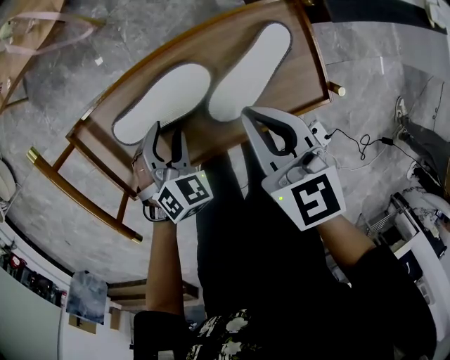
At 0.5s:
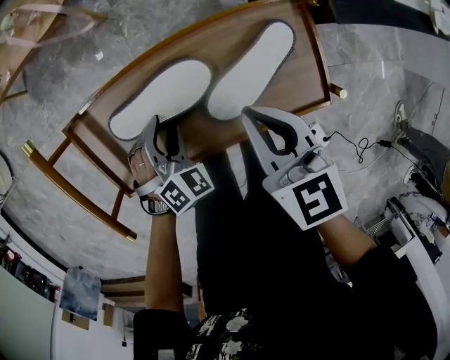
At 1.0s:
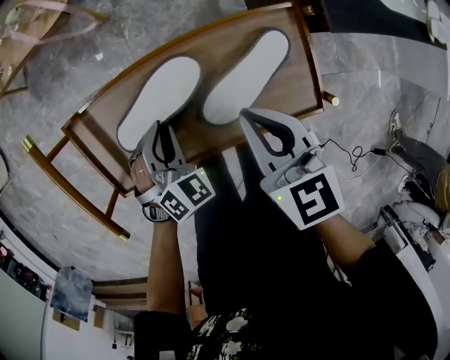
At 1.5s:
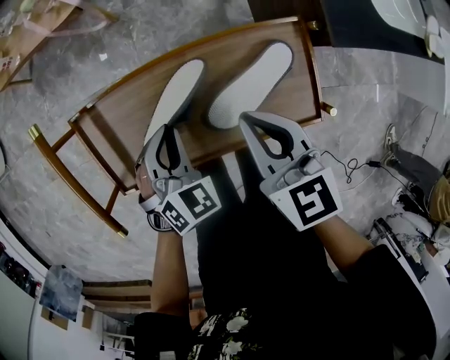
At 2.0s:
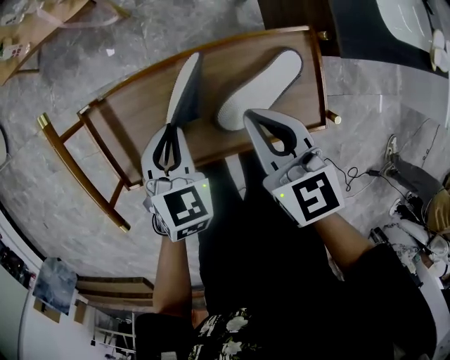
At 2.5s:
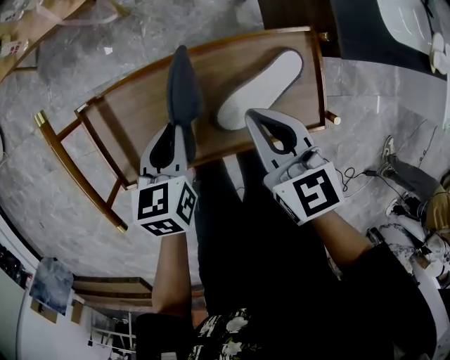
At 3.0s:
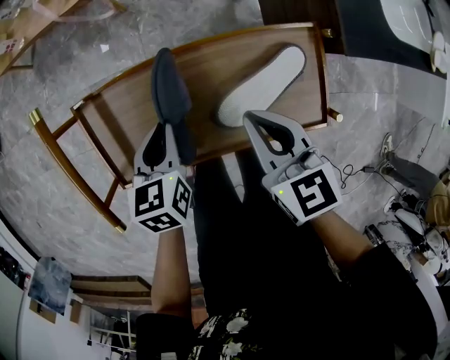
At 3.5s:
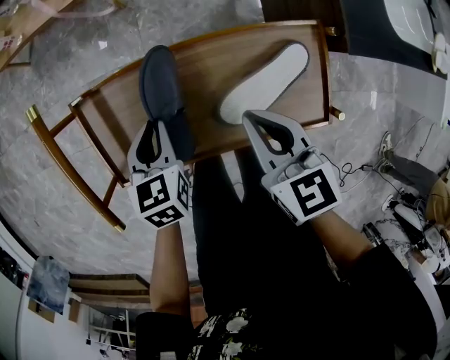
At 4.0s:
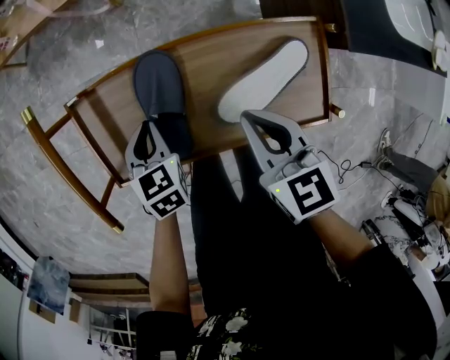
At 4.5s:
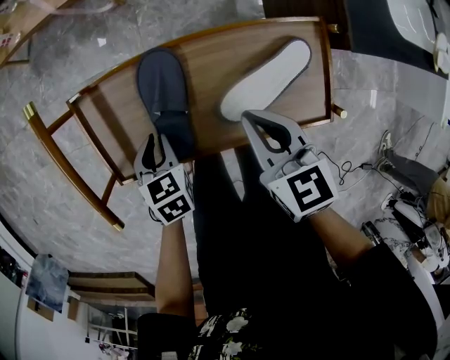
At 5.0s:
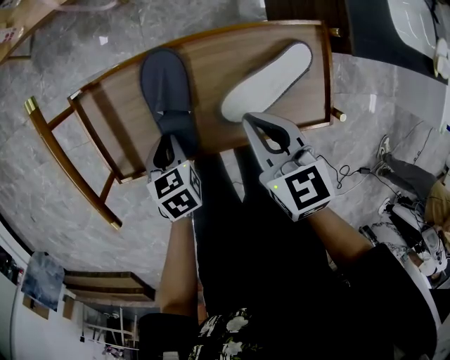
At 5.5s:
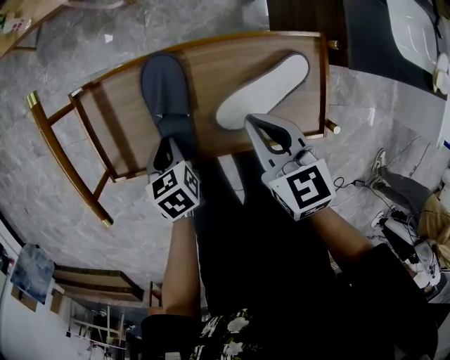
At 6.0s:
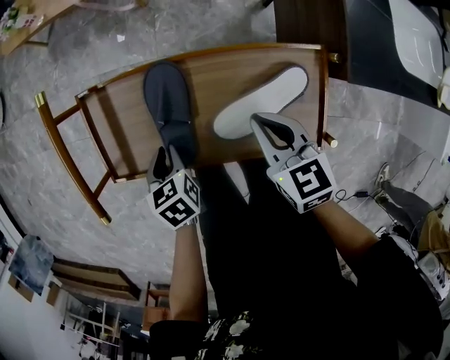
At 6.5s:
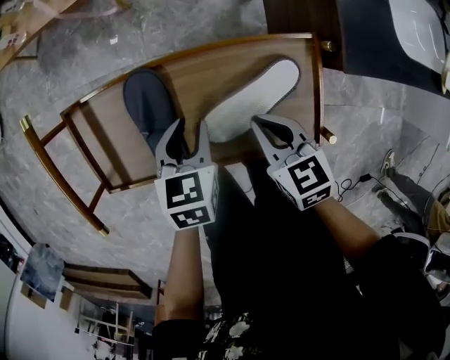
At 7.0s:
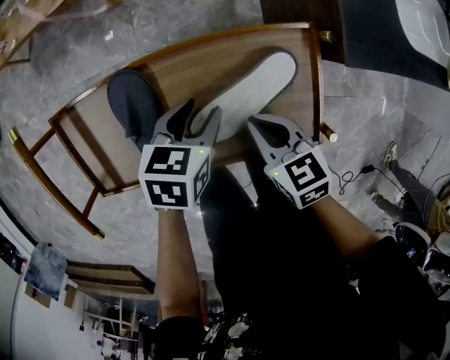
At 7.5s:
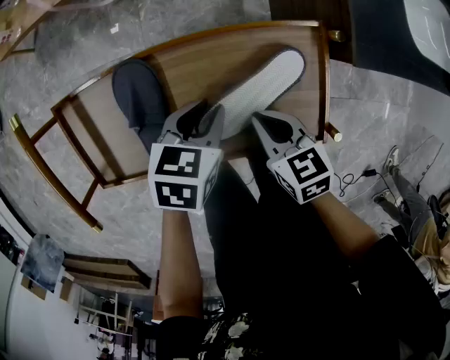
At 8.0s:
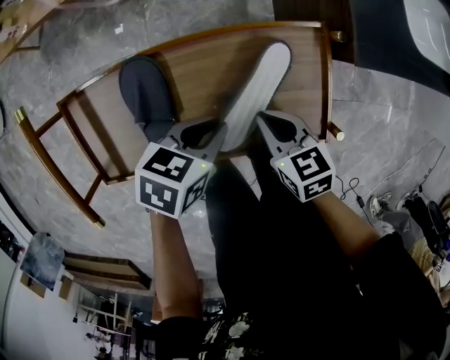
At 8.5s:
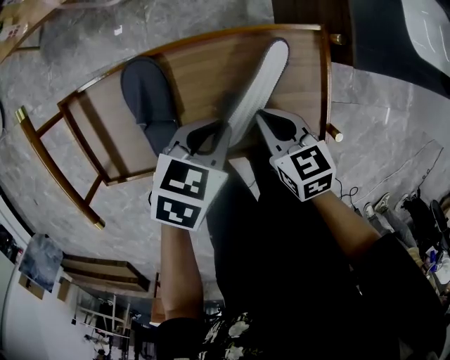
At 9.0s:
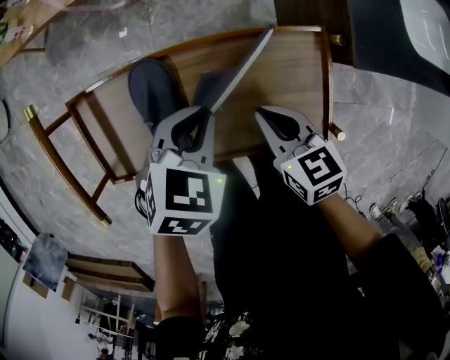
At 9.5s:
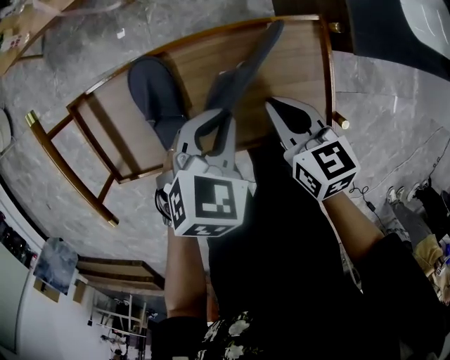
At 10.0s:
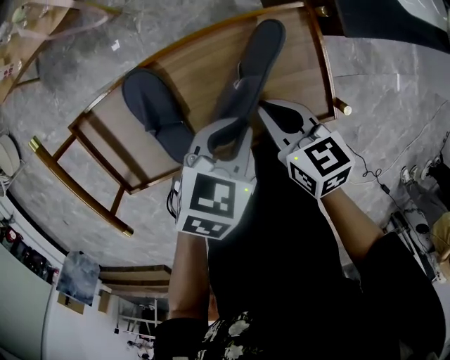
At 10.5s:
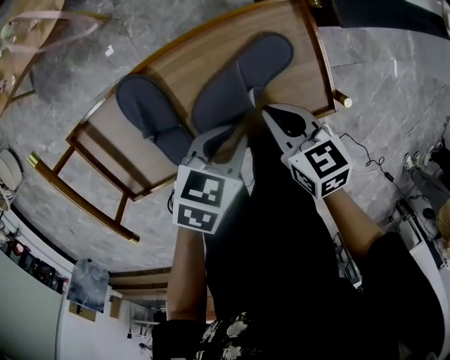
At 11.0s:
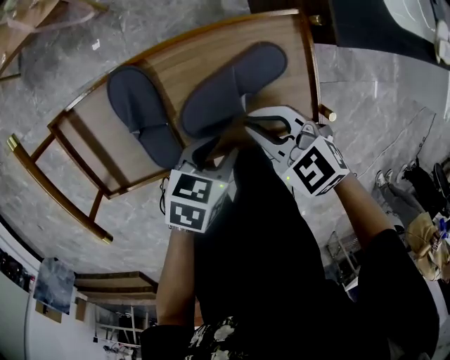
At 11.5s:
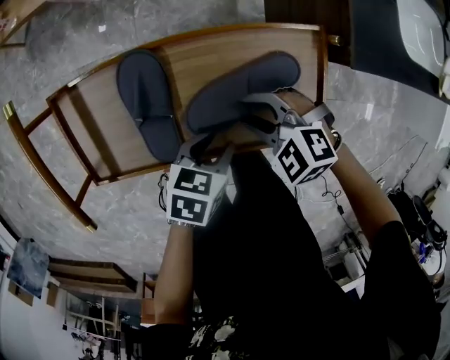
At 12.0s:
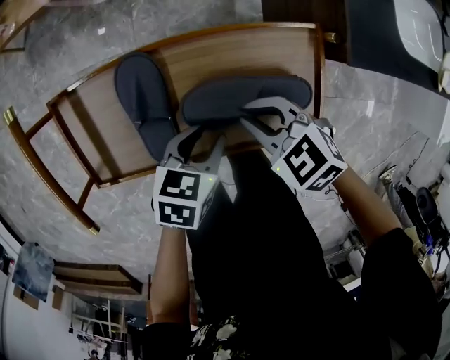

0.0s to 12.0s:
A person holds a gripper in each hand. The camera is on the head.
0.0s to 2.0s: The left gripper moves upward, approximately 10 cm, swivels some 30 degrees, and closes.
2.0s to 4.0s: The left gripper moves downward and to the left, about 10 cm, and turns by roughly 20 degrees.
4.0s to 6.0s: The left gripper travels backward by about 5 cm, and swivels roughly 30 degrees; the right gripper shifts by about 5 cm.
6.0s to 8.0s: The right gripper shifts approximately 10 cm downward. Meanwhile the left gripper changes place by some 20 cm, turns by approximately 60 degrees, and opens, then closes once more.
8.0s to 10.0s: The right gripper ends up some 5 cm from where it was; the left gripper changes place by some 5 cm.
10.0s to 12.0s: The left gripper heads downward, covering roughly 5 cm, rotates about 20 degrees, and opens up. The right gripper rolls counterclockwise, seen from behind, by some 40 degrees, and opens, then closes once more.

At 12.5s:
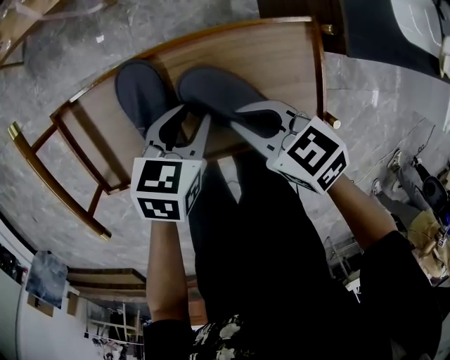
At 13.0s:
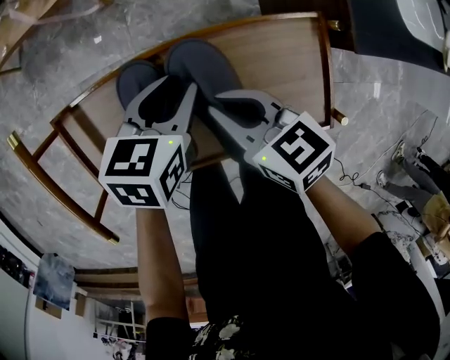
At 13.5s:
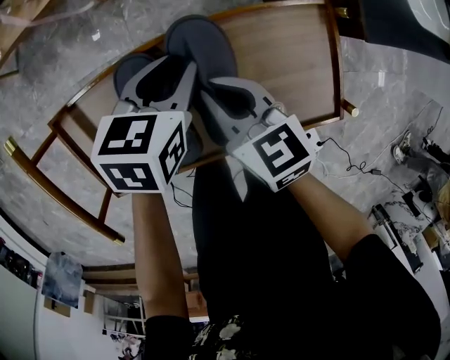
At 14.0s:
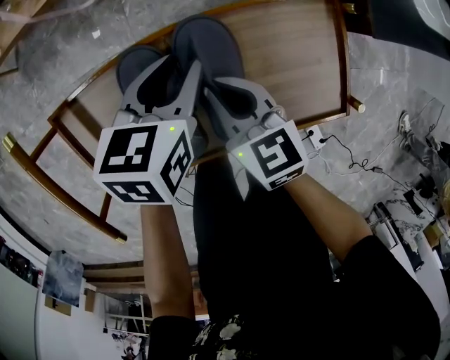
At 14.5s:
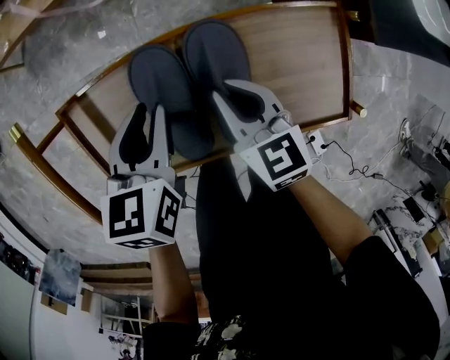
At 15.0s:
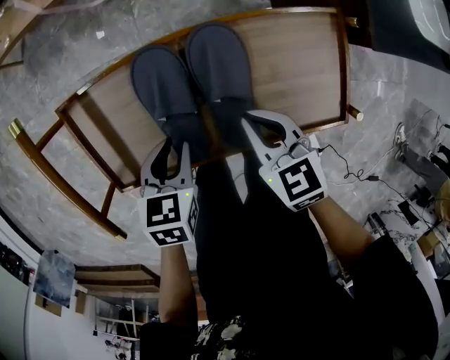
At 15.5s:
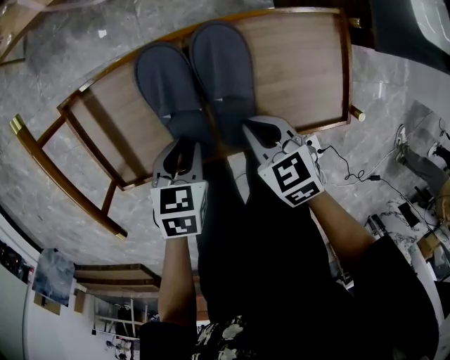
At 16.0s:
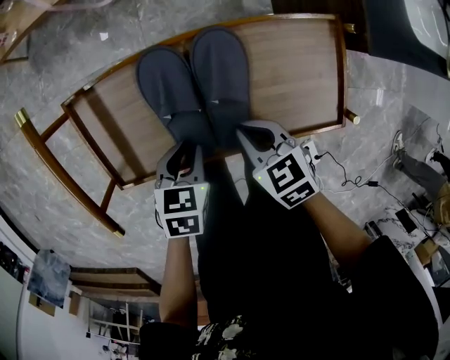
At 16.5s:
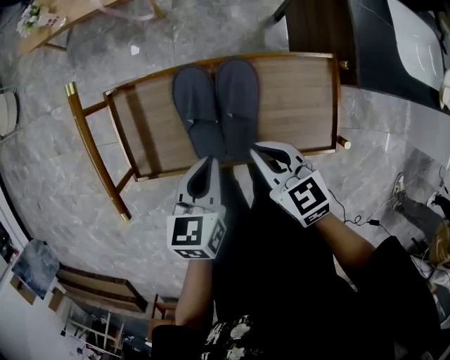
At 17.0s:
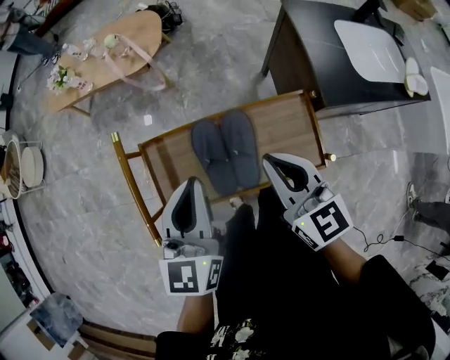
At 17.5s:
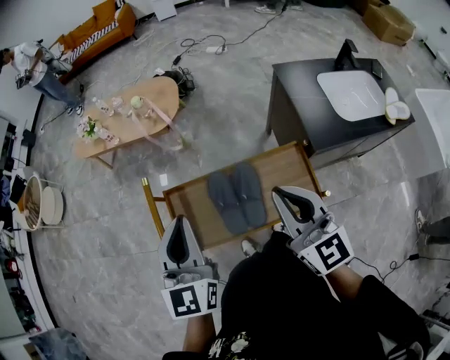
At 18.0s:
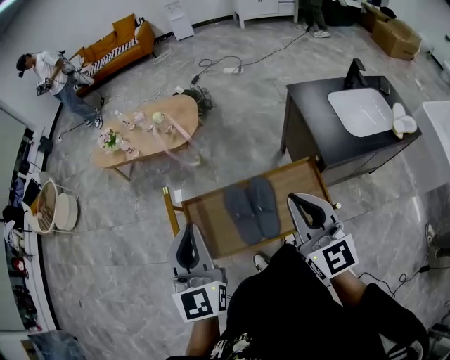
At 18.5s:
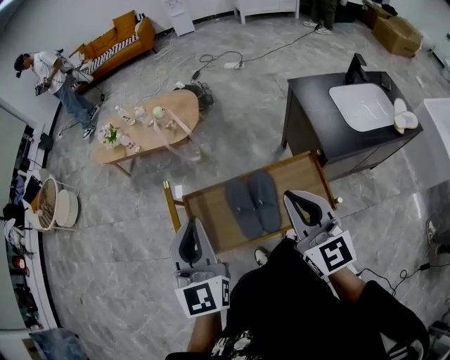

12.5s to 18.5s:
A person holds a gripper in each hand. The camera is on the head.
12.5s to 14.5s: The left gripper is displaced to the left by approximately 10 cm; the right gripper shifts some 5 cm to the left, and rotates some 30 degrees.
14.5s to 16.5s: The right gripper goes some 10 cm backward and upward. Meanwhile the left gripper travels backward by some 10 cm, and closes.
16.5s to 18.5s: The grippers both shift upward by some 30 cm. The right gripper points its fingers some 40 degrees further upward; the left gripper tilts its fingers about 40 degrees upward.

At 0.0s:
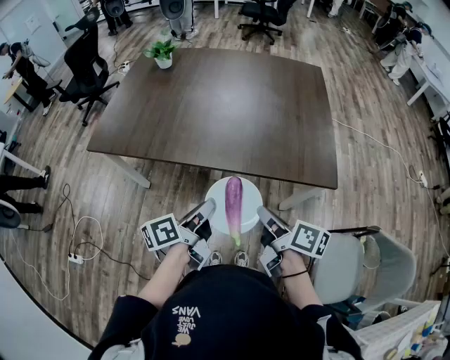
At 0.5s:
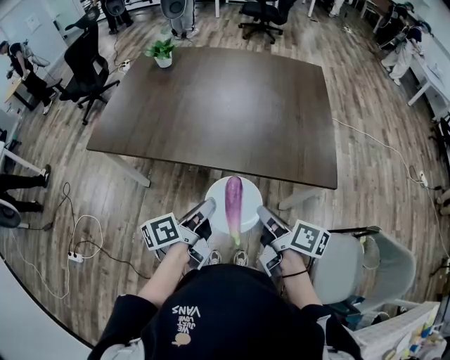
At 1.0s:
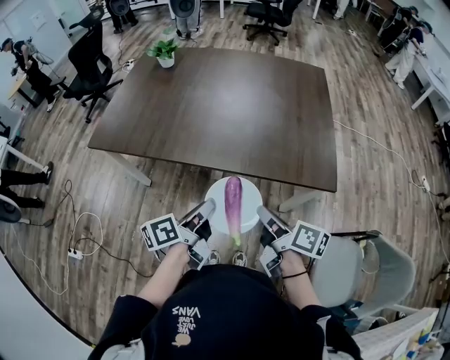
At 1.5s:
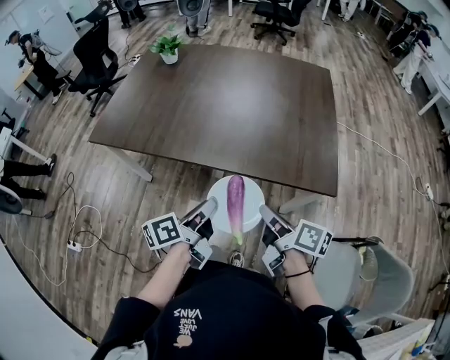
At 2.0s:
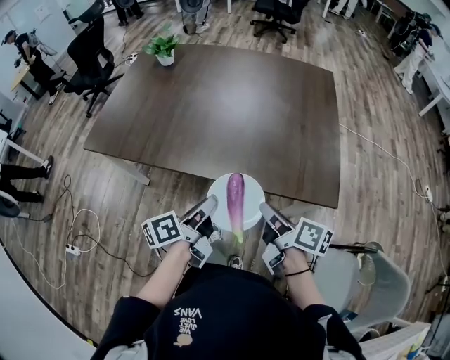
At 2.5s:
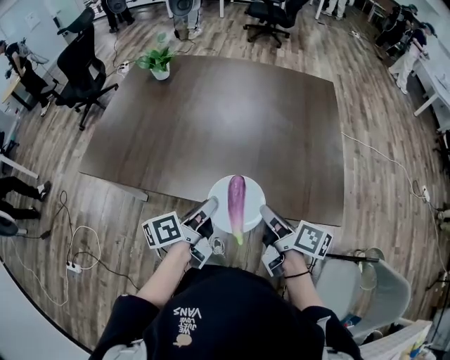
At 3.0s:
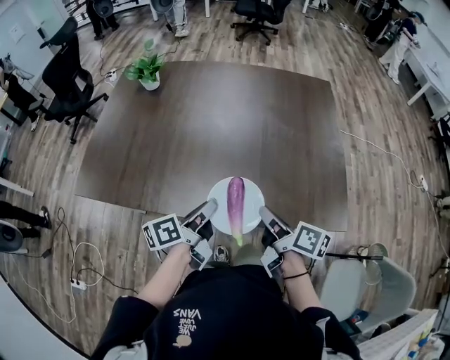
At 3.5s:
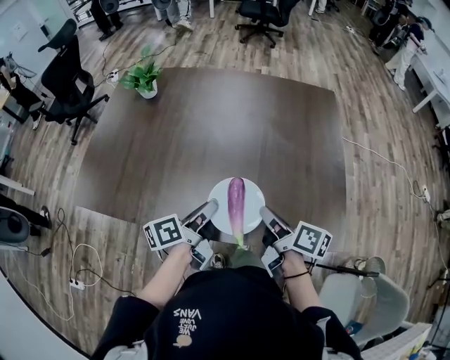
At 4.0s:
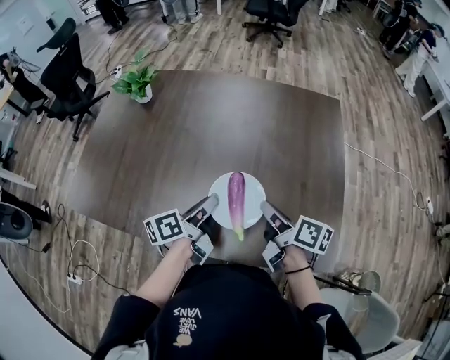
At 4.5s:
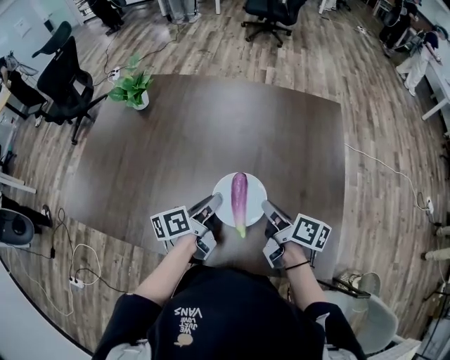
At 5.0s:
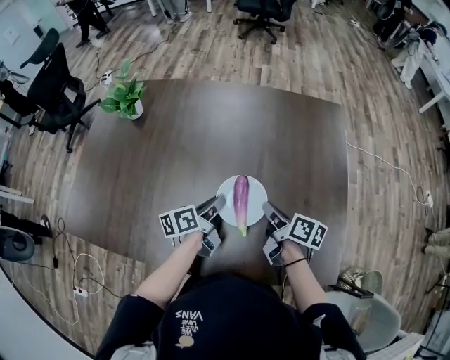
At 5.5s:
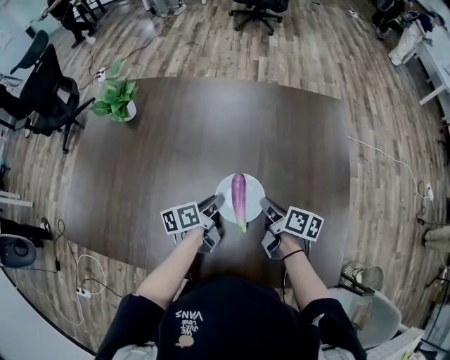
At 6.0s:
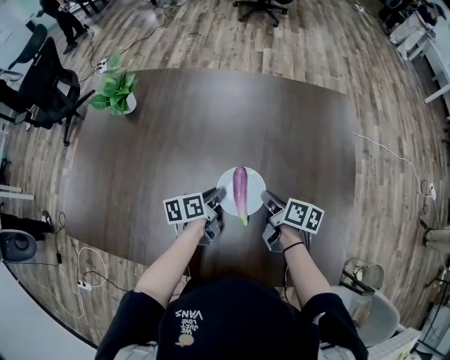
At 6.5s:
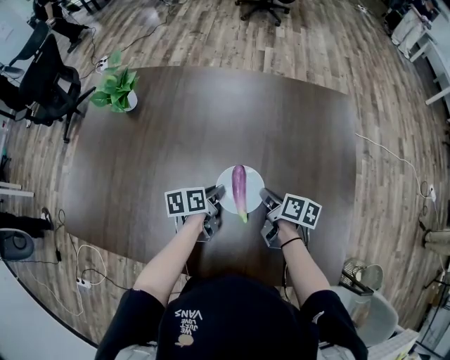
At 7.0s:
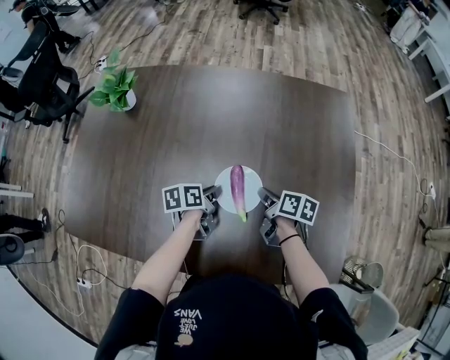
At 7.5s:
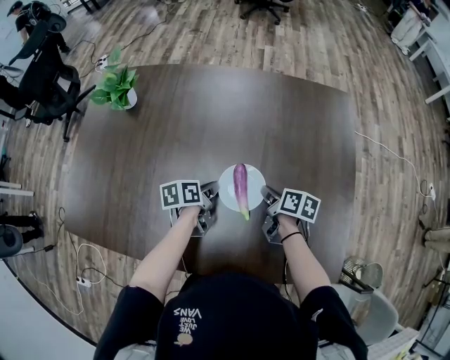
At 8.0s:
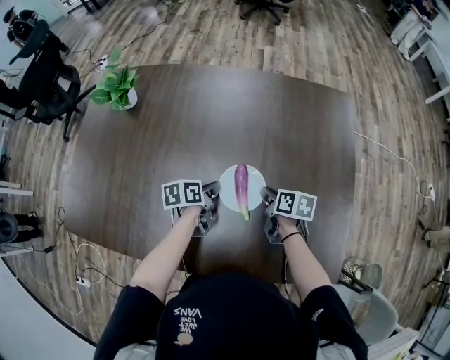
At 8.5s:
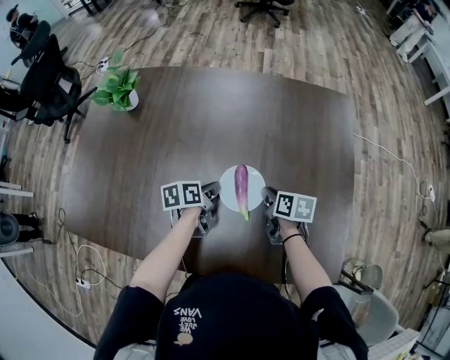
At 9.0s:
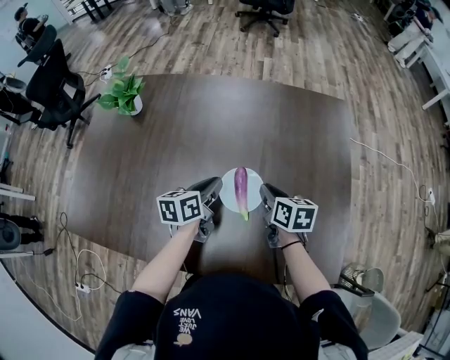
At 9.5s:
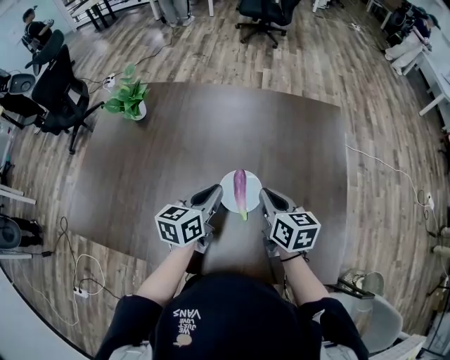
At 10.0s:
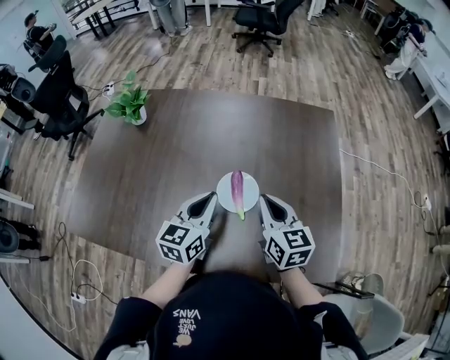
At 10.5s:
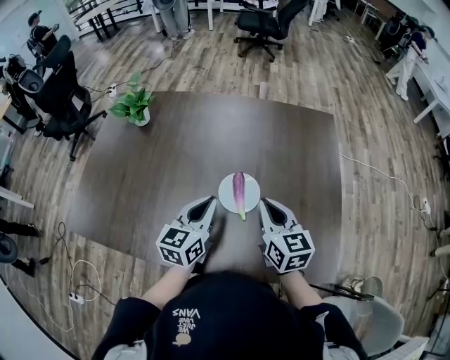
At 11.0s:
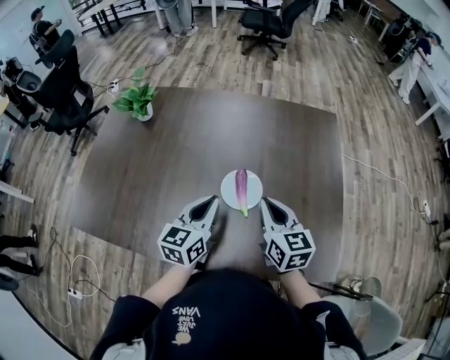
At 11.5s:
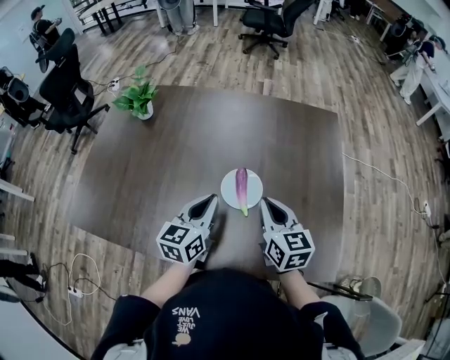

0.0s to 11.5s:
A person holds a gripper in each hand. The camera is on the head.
0.0s to 2.0s: Both grippers travel together forward, roughly 5 cm.
2.0s to 4.0s: The two grippers go approximately 30 cm forward.
4.0s to 6.0s: The left gripper heads downward and forward, covering approximately 20 cm, and swivels approximately 20 degrees; the right gripper moves forward and downward, approximately 20 cm.
6.0s to 7.5s: There are only small adjustments of the grippers.
7.5s to 9.5s: Both grippers move upward, some 15 cm. The left gripper rotates approximately 40 degrees. Meanwhile the right gripper turns by some 40 degrees.
9.5s to 11.5s: Both grippers move backward, some 5 cm.
